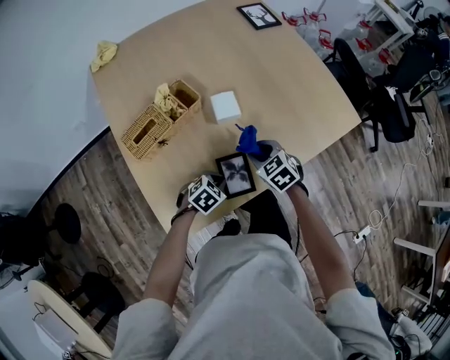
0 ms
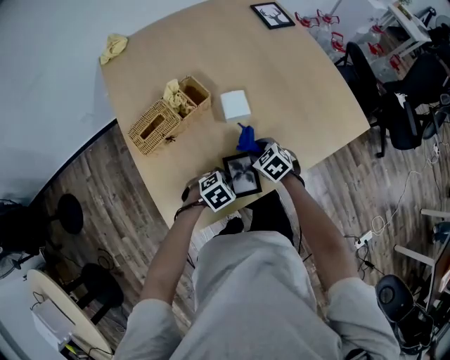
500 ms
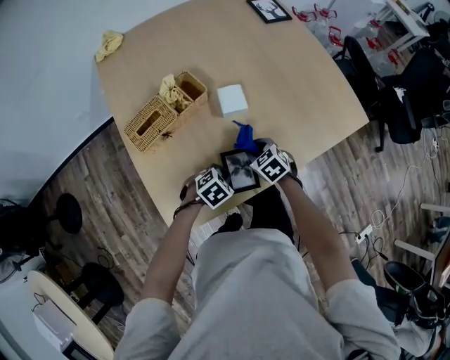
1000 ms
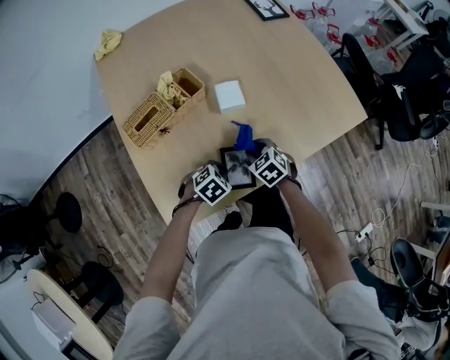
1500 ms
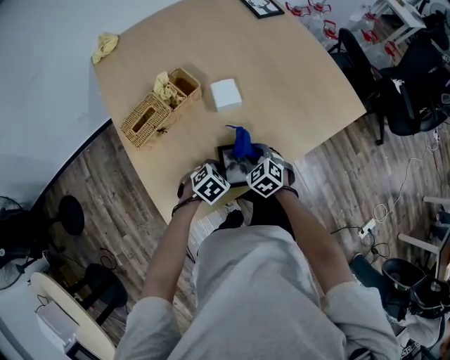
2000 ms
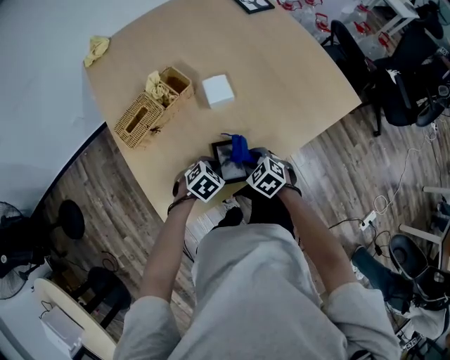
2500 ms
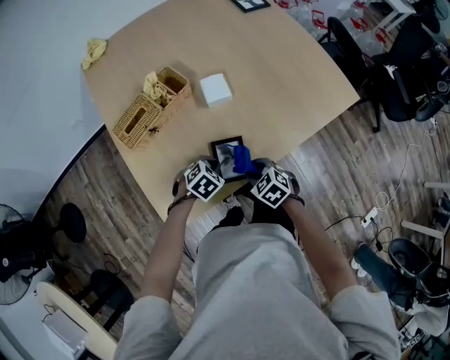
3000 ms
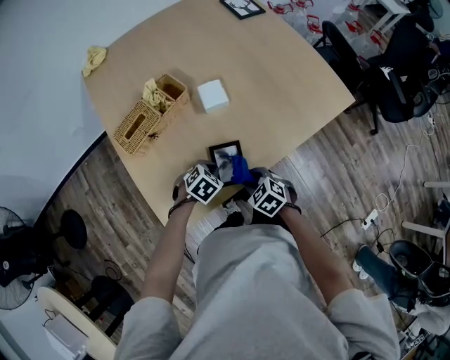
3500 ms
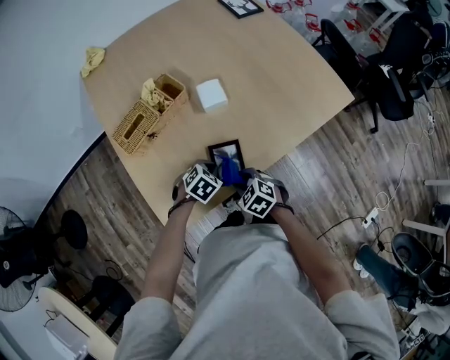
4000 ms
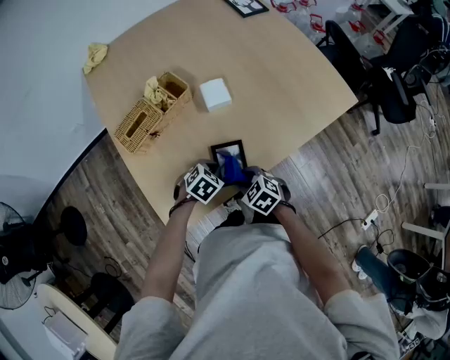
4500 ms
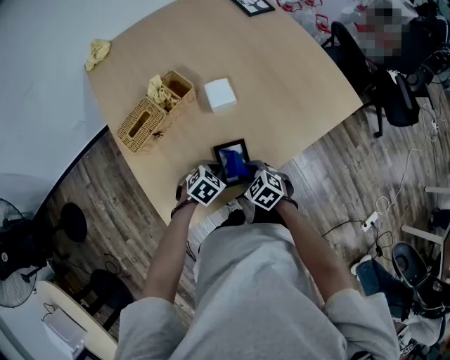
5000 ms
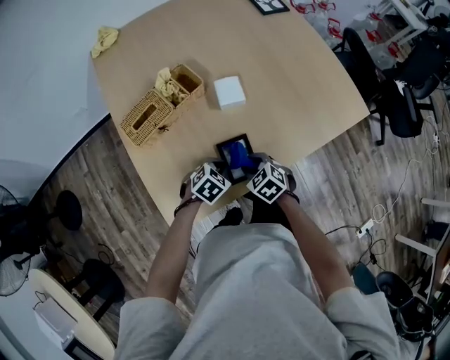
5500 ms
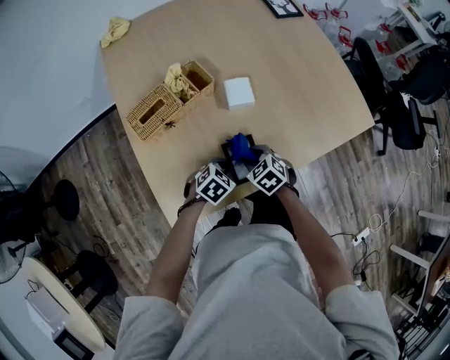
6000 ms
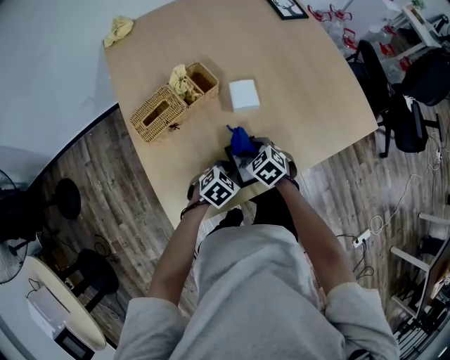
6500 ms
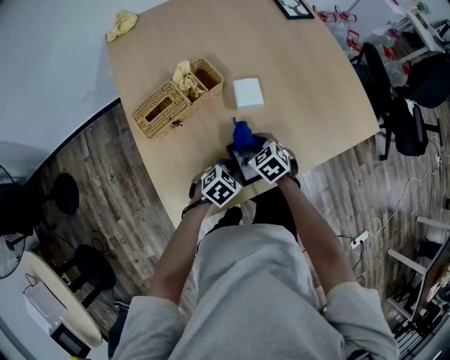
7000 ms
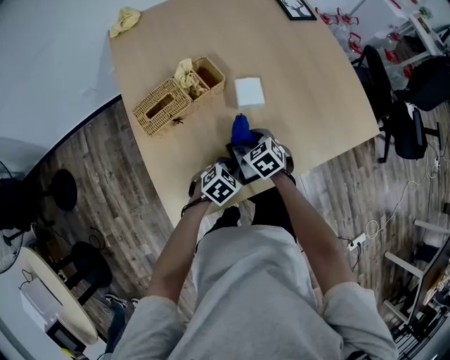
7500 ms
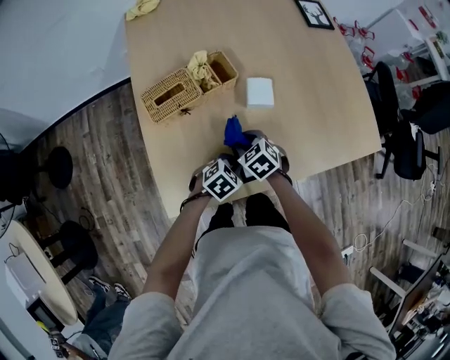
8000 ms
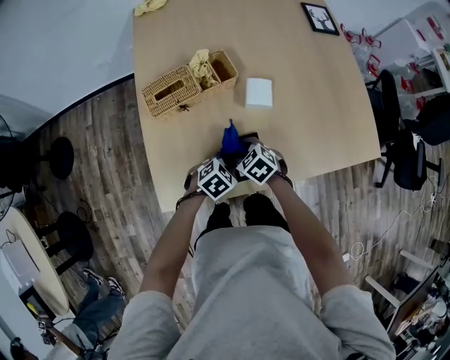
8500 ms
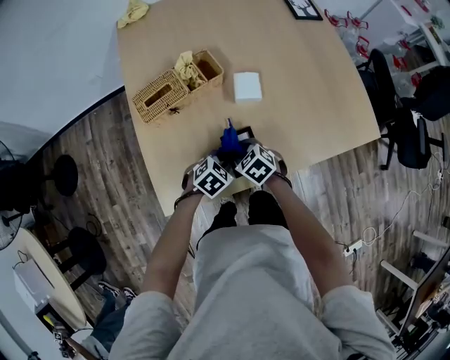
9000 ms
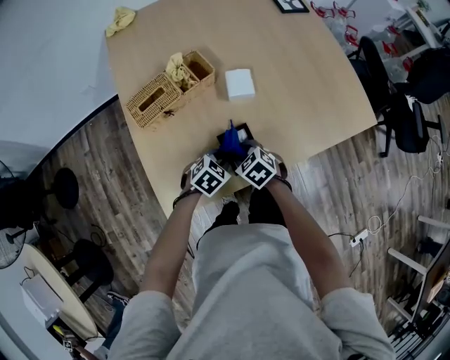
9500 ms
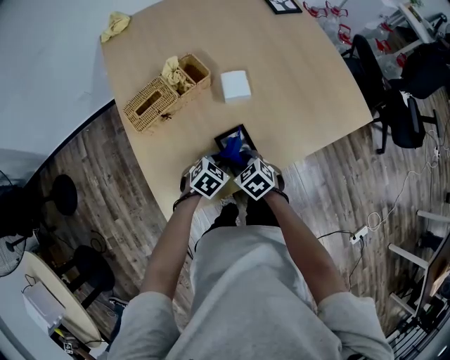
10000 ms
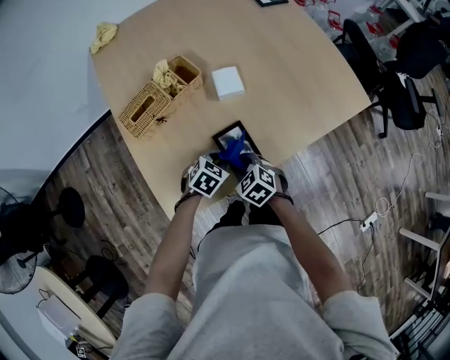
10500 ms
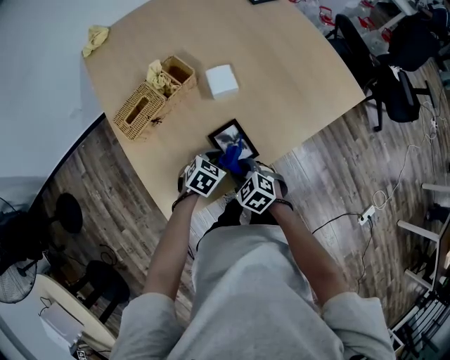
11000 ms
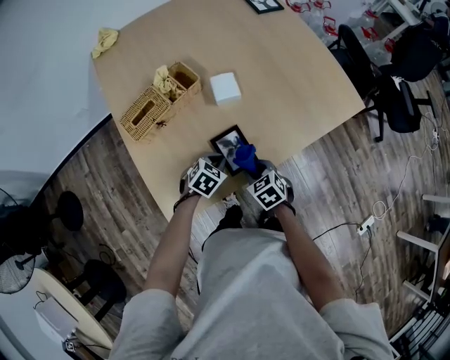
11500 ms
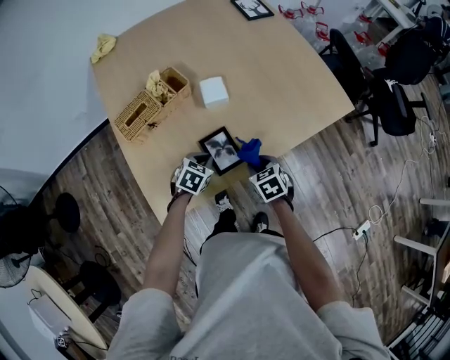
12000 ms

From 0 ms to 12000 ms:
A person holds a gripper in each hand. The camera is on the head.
From 0 ms to 2000 ms: The right gripper travels downward by approximately 5 cm.
From 2000 ms to 4000 ms: The right gripper travels backward by about 10 cm.
From 4000 ms to 6000 ms: The right gripper shifts some 10 cm forward.
From 6000 ms to 8000 ms: The right gripper heads to the left, covering about 5 cm.
From 8000 ms to 10000 ms: The right gripper travels backward by some 10 cm.
From 10000 ms to 12000 ms: The right gripper shifts approximately 10 cm to the right, and changes its angle by some 20 degrees.

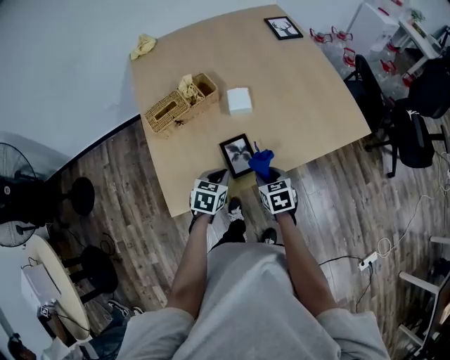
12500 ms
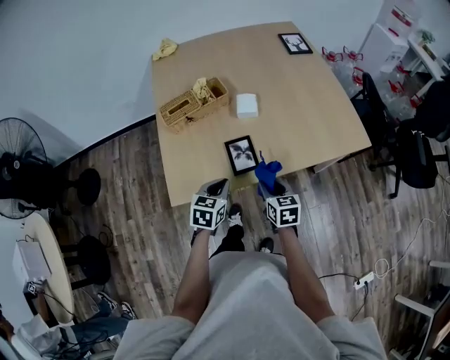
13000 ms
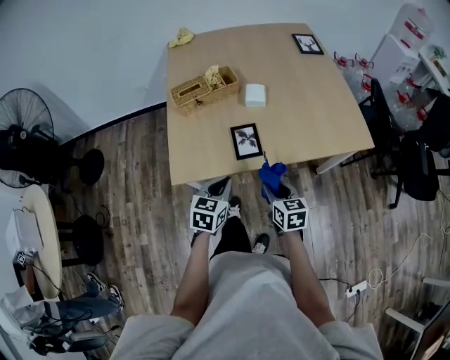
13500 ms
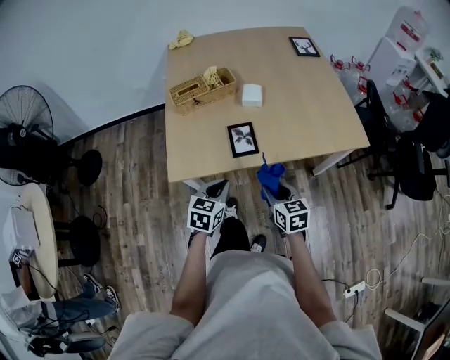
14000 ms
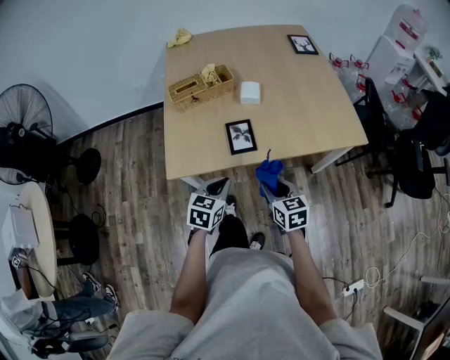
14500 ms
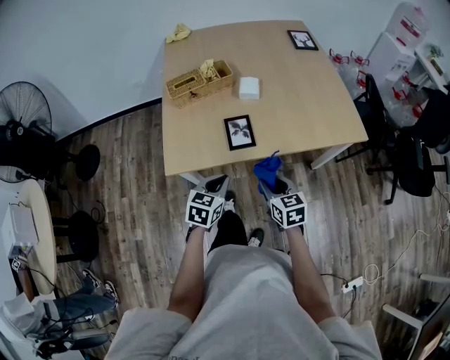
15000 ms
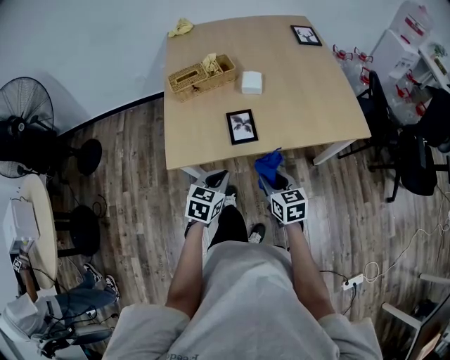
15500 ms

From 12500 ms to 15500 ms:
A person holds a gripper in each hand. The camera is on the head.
From 12500 ms to 14000 ms: The grippers both shift backward and upward by approximately 15 cm.
From 14000 ms to 15500 ms: The grippers make only small movements.

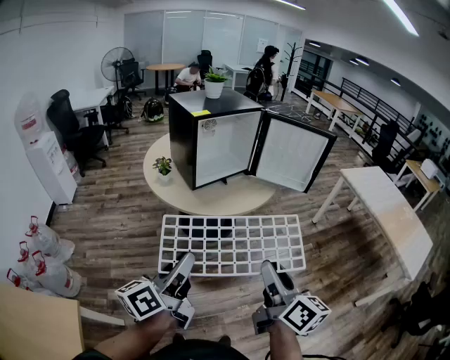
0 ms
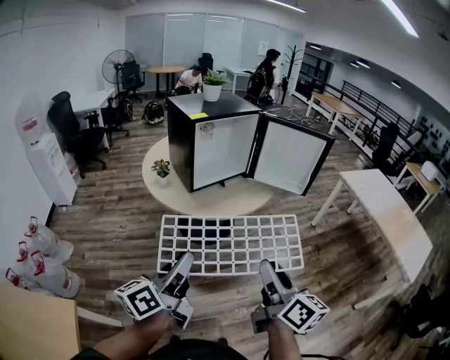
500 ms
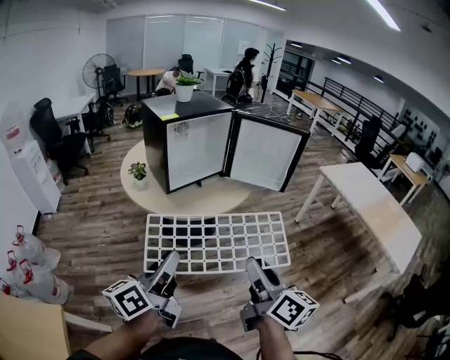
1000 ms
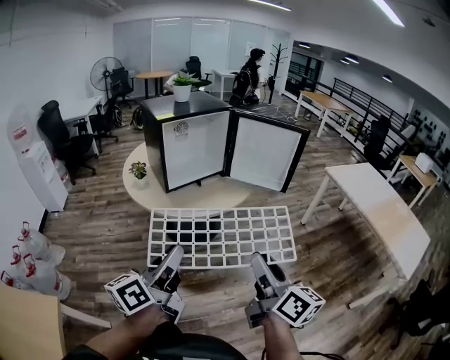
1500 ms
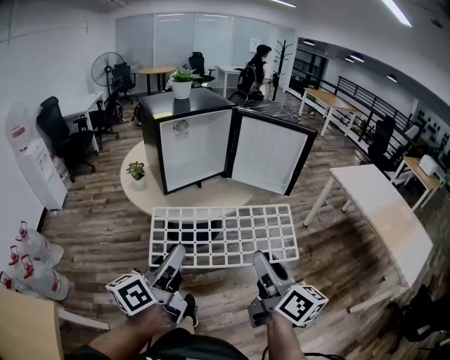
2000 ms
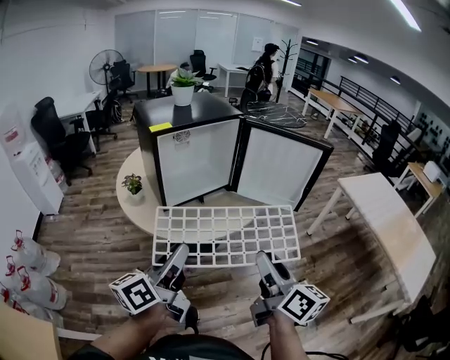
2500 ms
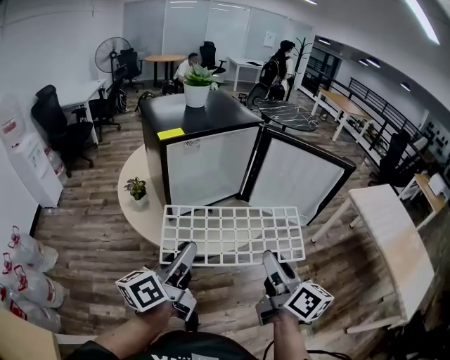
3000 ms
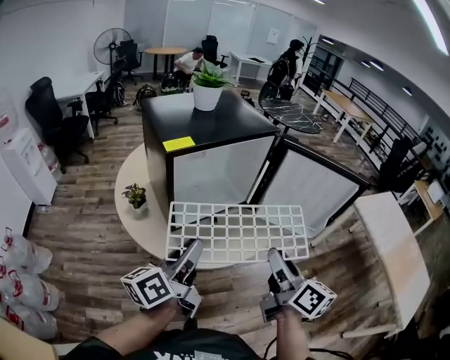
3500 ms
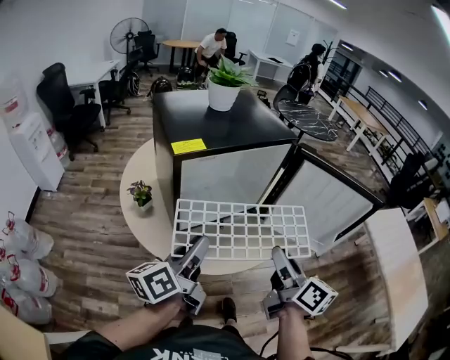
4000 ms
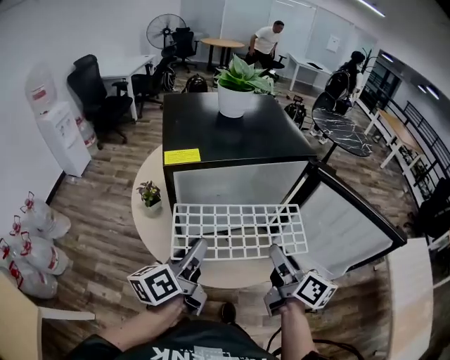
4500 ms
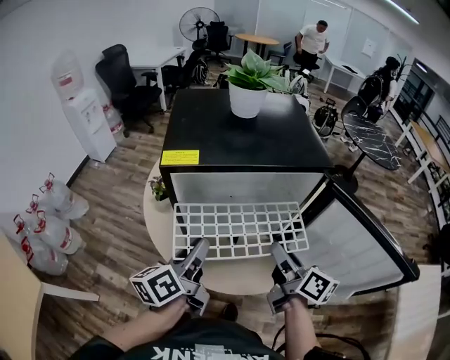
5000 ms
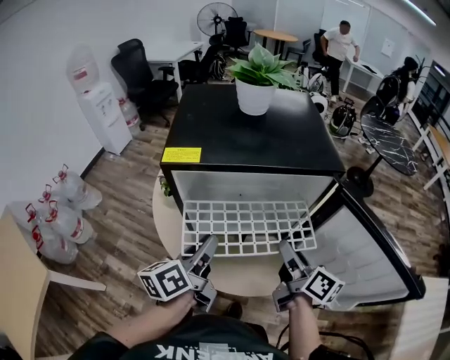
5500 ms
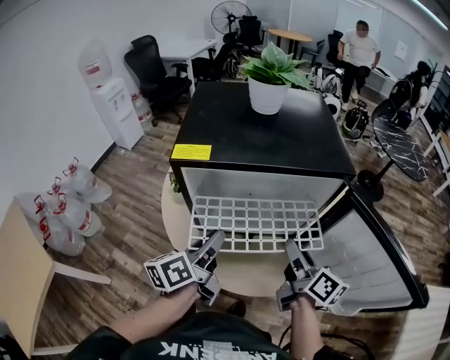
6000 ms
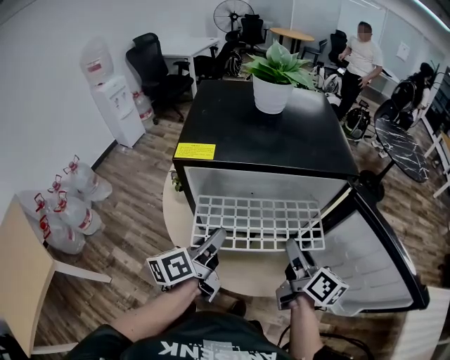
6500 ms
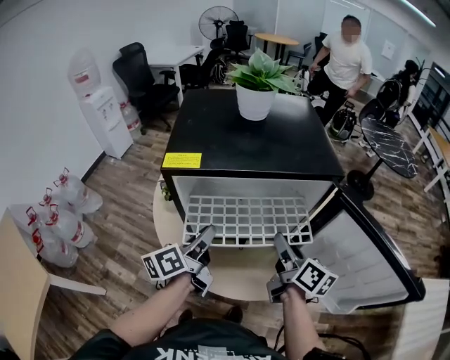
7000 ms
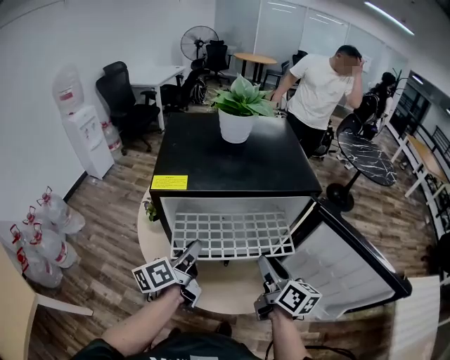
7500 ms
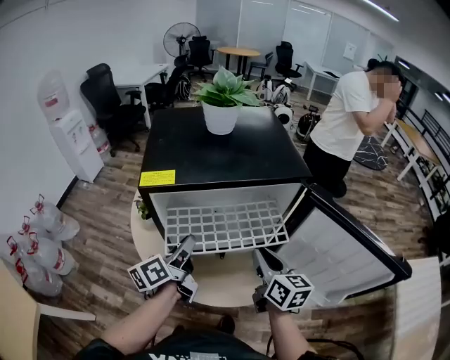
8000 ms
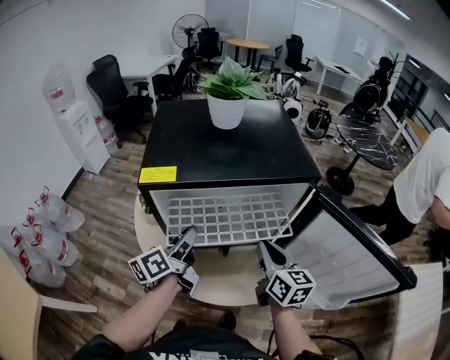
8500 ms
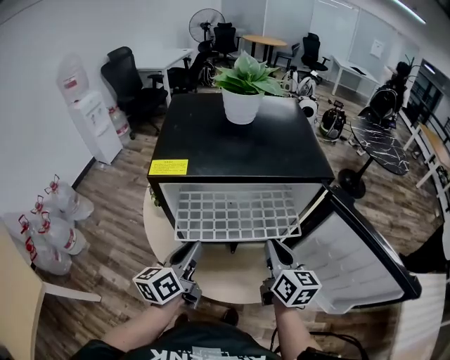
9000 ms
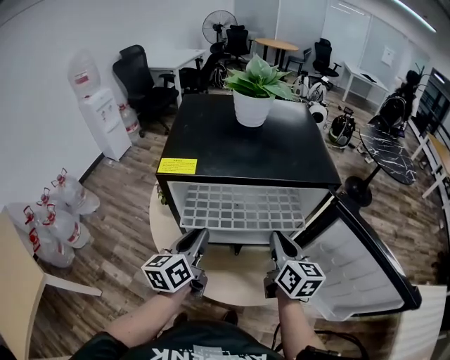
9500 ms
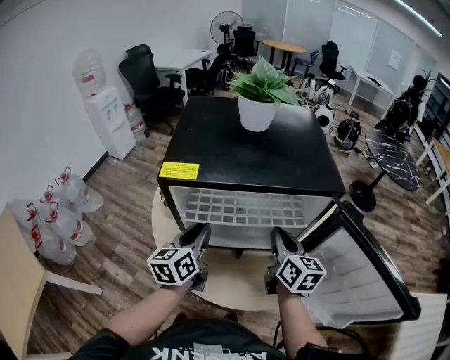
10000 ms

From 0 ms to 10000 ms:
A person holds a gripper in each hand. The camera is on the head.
From 0 ms to 2000 ms: Both grippers move to the right and forward, some 15 cm.
From 2000 ms to 4000 ms: The two grippers go roughly 40 cm forward.
From 4000 ms to 6000 ms: The right gripper changes place by some 25 cm, and turns by some 30 degrees. The left gripper changes place by about 15 cm, and rotates approximately 30 degrees.
From 6000 ms to 8000 ms: The grippers stay close to where they were, moving slightly.
From 8000 ms to 10000 ms: The left gripper turns by approximately 30 degrees. Meanwhile the right gripper goes approximately 10 cm forward.

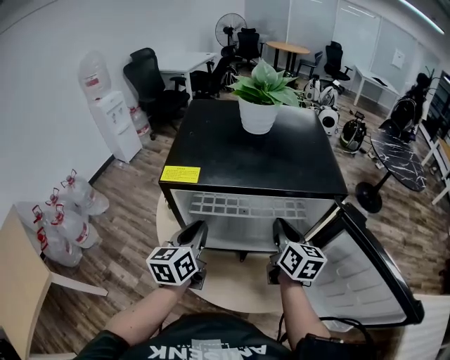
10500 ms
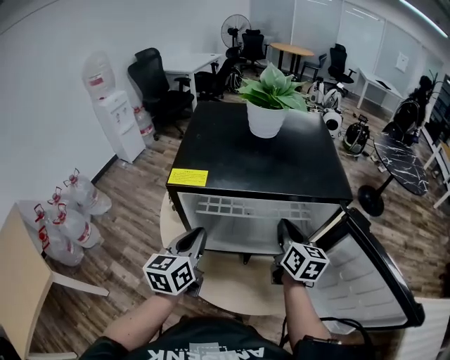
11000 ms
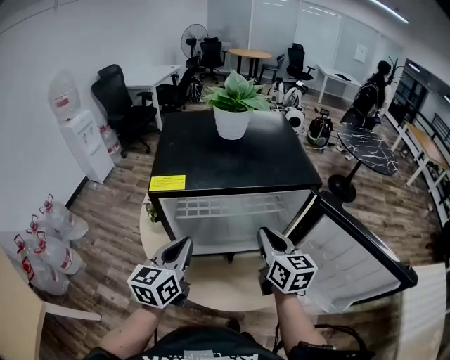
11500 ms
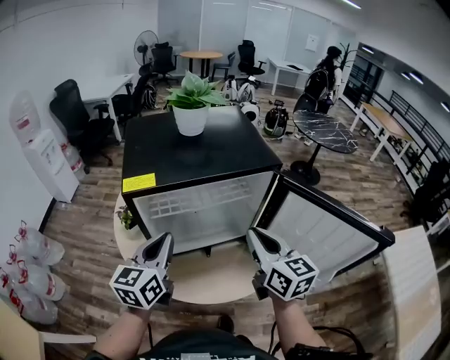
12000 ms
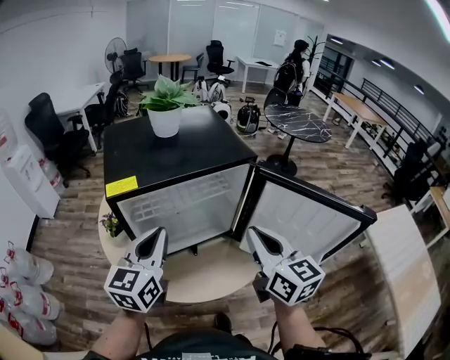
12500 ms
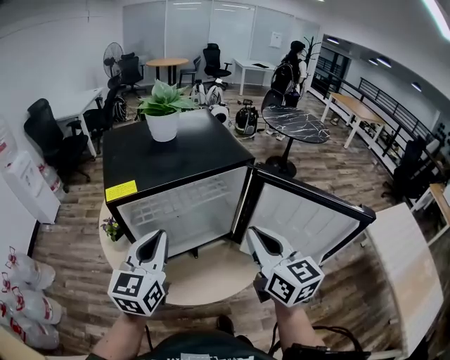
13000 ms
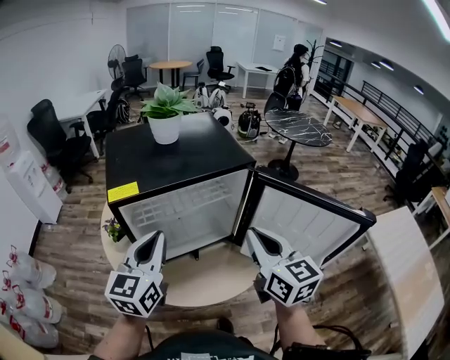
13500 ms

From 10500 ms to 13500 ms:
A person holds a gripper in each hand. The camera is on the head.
From 10500 ms to 12000 ms: The right gripper goes about 15 cm backward and upward. Meanwhile the left gripper moves upward and backward, approximately 10 cm, and turns by approximately 20 degrees.
From 12000 ms to 13500 ms: The right gripper moves approximately 5 cm, while the left gripper heads upward, covering some 5 cm.
